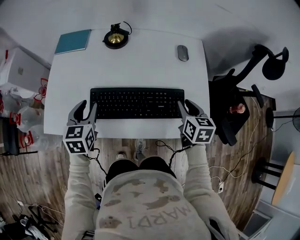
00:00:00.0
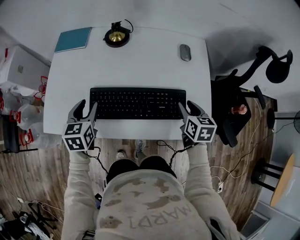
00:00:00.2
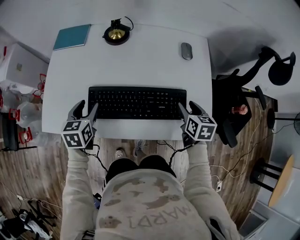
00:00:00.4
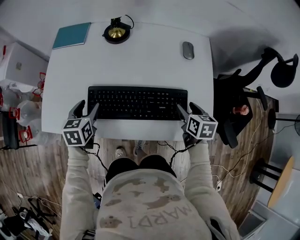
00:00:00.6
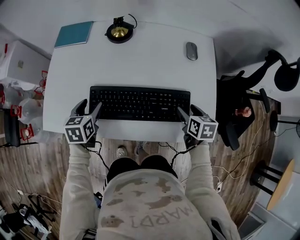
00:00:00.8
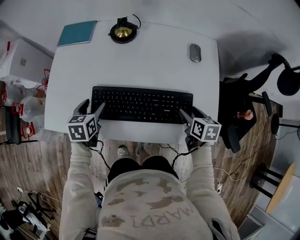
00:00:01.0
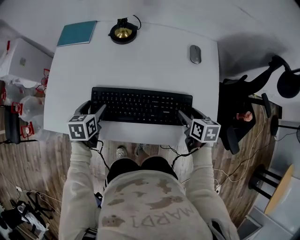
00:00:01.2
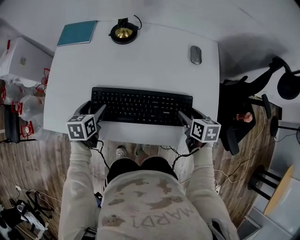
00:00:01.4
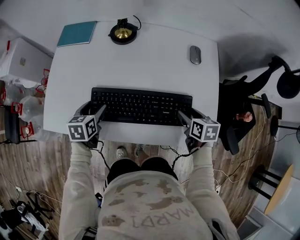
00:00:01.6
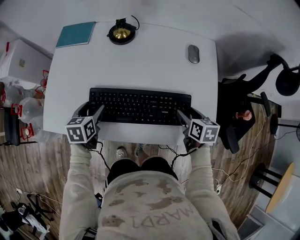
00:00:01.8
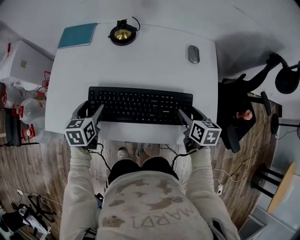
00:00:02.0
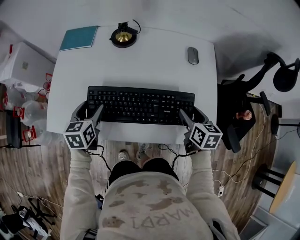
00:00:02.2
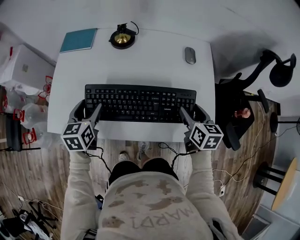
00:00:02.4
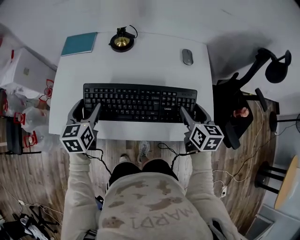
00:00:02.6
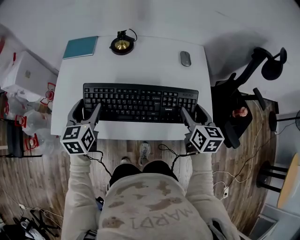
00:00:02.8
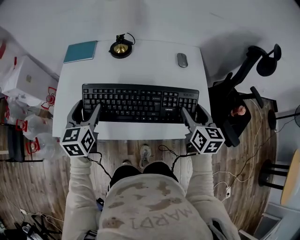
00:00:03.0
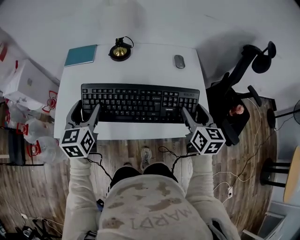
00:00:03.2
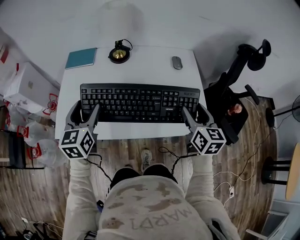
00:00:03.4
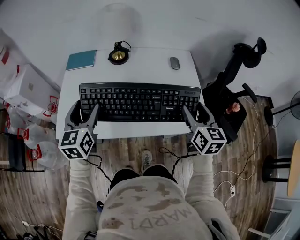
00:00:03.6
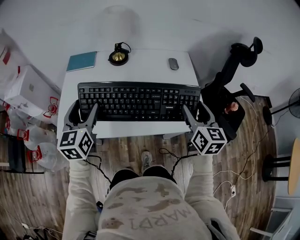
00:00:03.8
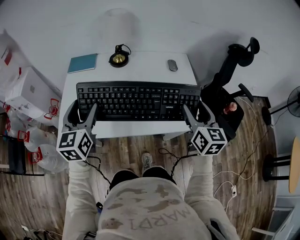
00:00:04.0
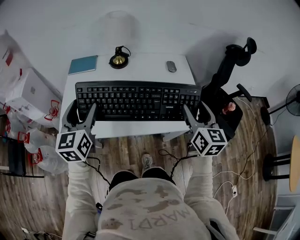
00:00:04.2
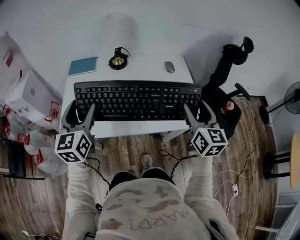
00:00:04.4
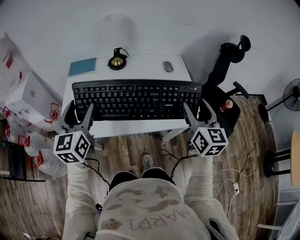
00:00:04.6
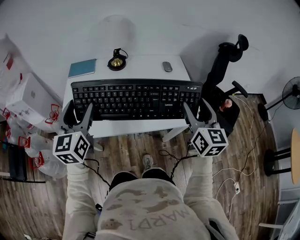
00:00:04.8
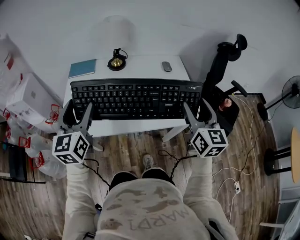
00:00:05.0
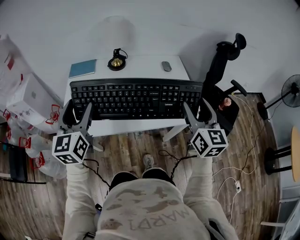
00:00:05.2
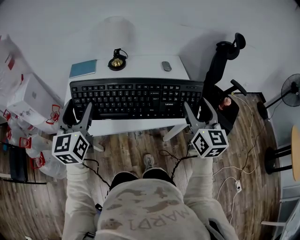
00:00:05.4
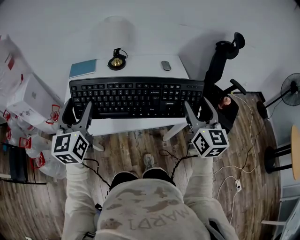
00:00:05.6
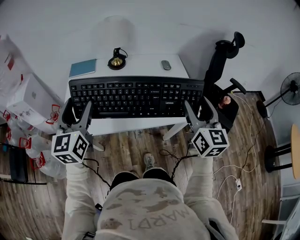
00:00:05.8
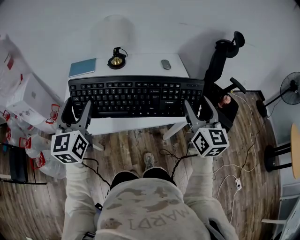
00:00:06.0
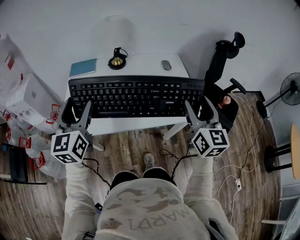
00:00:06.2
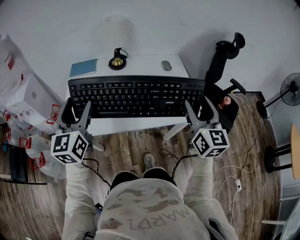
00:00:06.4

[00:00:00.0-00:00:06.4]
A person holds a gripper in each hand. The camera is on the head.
00:00:00.0 to 00:00:01.6: Both grippers travel together downward, roughly 10 cm. The left gripper changes its angle by some 20 degrees, and opens its fingers; the right gripper opens its fingers.
00:00:01.6 to 00:00:03.2: The two grippers go roughly 20 cm upward. The right gripper points its fingers approximately 30 degrees further upward. The left gripper turns by roughly 30 degrees.
00:00:03.2 to 00:00:04.8: The two grippers go approximately 15 cm upward and backward. The right gripper turns by some 20 degrees.
00:00:04.8 to 00:00:06.4: The grippers make only small movements.

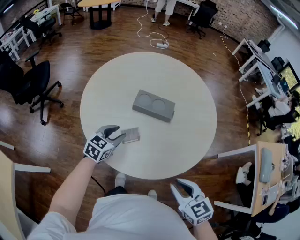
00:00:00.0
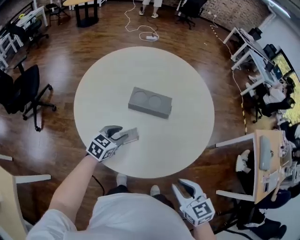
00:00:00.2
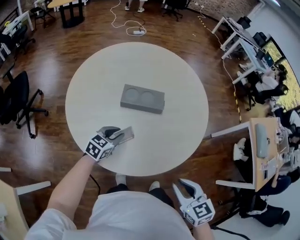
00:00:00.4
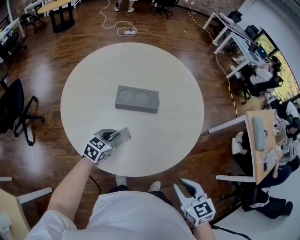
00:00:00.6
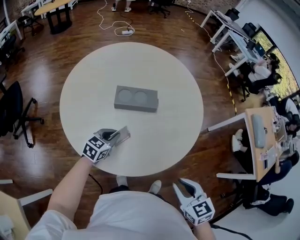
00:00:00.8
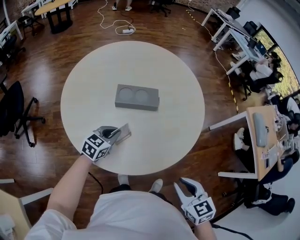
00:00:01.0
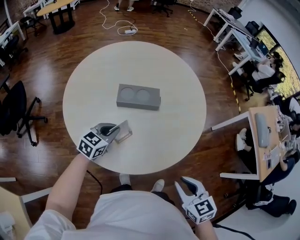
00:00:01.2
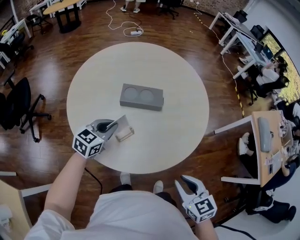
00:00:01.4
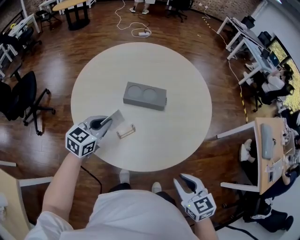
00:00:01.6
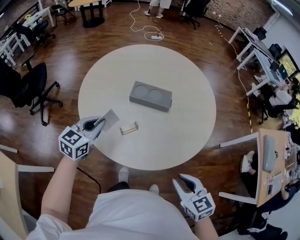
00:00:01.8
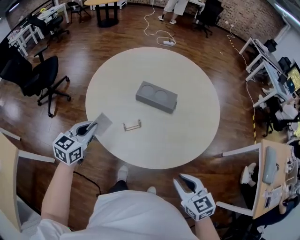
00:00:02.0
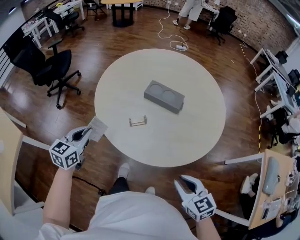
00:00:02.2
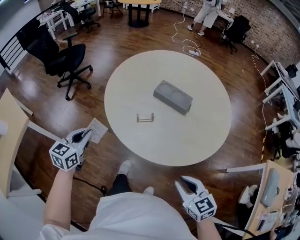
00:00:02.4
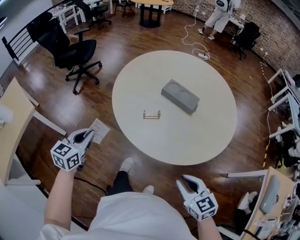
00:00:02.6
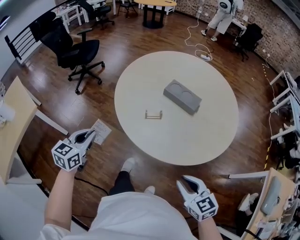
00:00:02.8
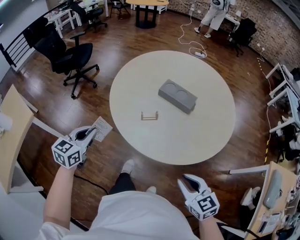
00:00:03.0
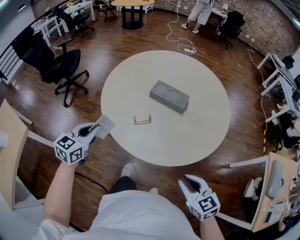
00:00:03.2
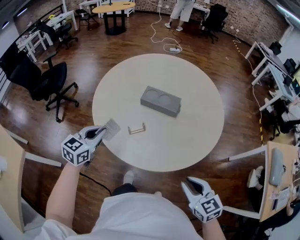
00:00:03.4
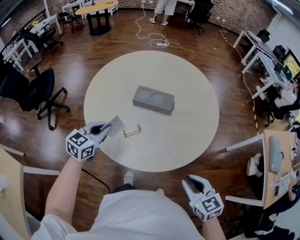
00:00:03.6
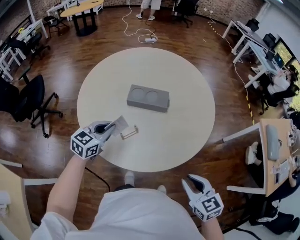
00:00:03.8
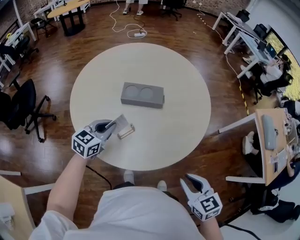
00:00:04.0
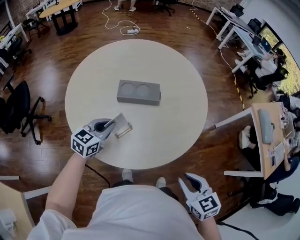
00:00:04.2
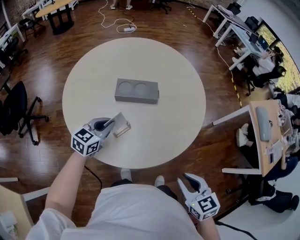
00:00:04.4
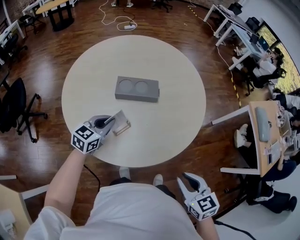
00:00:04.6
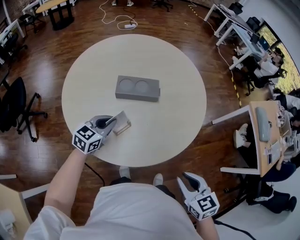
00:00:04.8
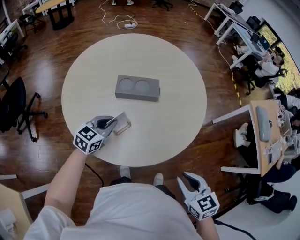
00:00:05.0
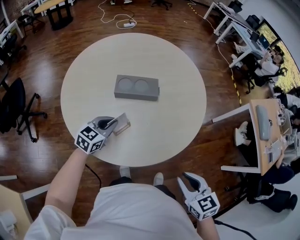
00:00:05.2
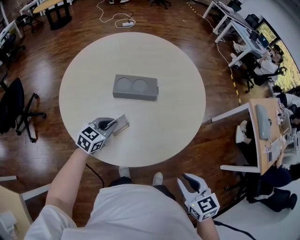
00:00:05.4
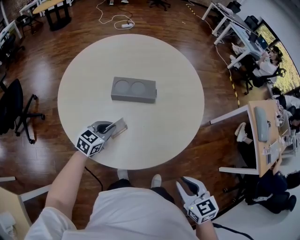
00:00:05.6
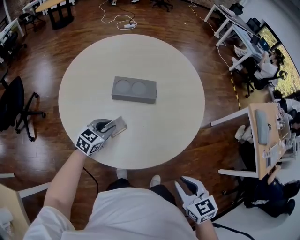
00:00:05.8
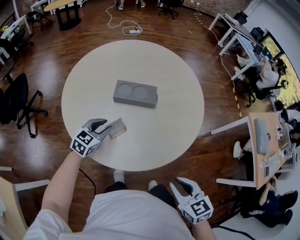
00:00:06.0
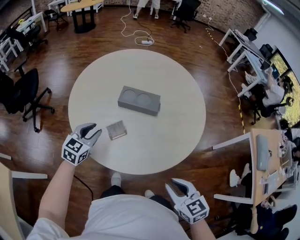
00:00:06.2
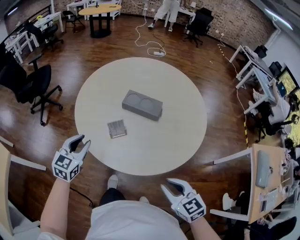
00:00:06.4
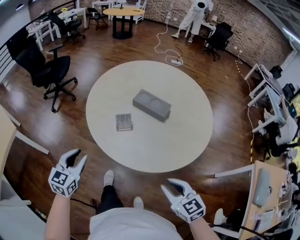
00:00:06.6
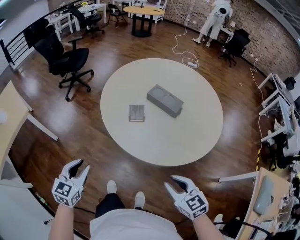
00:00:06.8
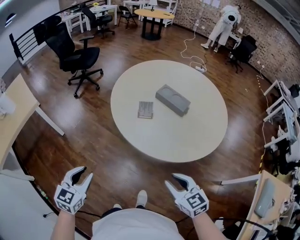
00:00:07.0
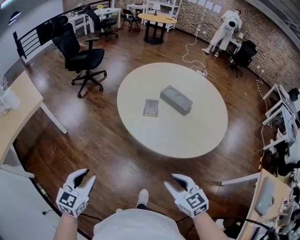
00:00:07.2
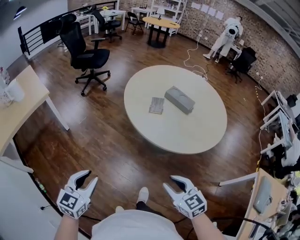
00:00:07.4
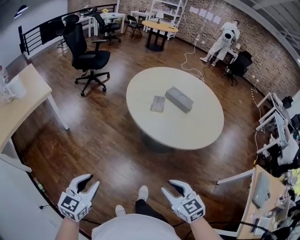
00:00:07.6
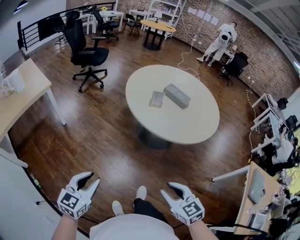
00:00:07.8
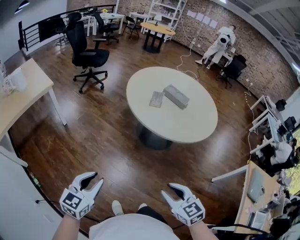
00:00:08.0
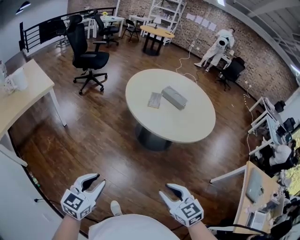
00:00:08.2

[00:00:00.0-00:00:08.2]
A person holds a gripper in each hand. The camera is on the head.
00:00:00.0 to 00:00:01.6: The left gripper travels upward by some 5 cm, and closes its fingers.
00:00:01.6 to 00:00:03.2: The right gripper moves about 5 cm, and rotates roughly 20 degrees, while the left gripper ends up about 20 cm from where it was, and swivels about 30 degrees.
00:00:03.2 to 00:00:05.0: The left gripper shifts by about 25 cm, and swivels roughly 40 degrees. The right gripper ends up roughly 5 cm from where it was, and changes its angle by about 30 degrees.
00:00:05.0 to 00:00:06.6: The right gripper changes place by some 10 cm, and turns by about 40 degrees; the left gripper moves roughly 25 cm, turns by roughly 50 degrees, and opens up.
00:00:06.6 to 00:00:08.2: The right gripper is displaced backward and to the left by roughly 35 cm; the left gripper travels backward by approximately 50 cm.

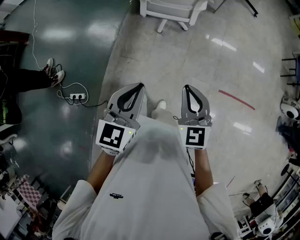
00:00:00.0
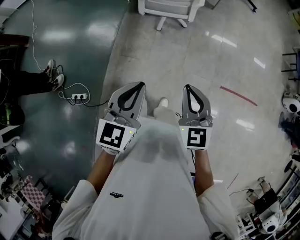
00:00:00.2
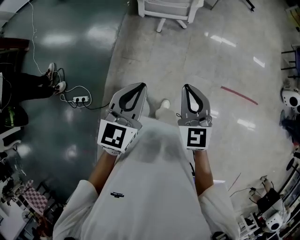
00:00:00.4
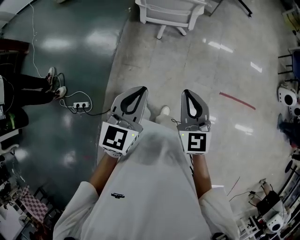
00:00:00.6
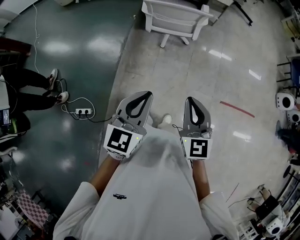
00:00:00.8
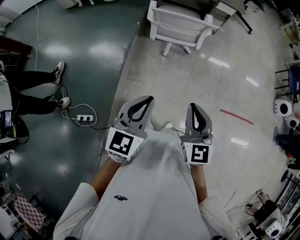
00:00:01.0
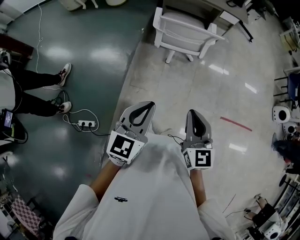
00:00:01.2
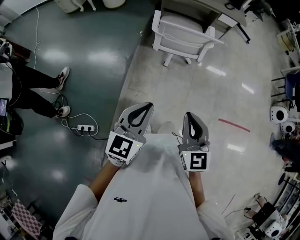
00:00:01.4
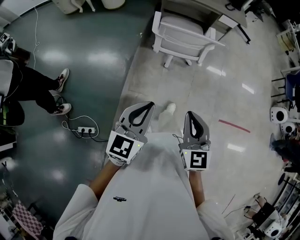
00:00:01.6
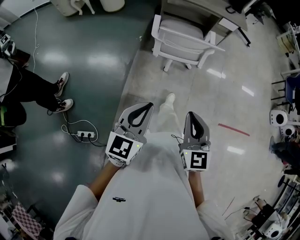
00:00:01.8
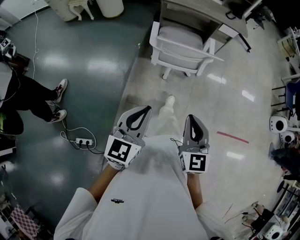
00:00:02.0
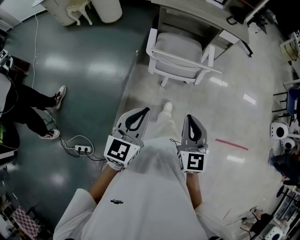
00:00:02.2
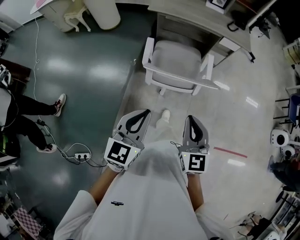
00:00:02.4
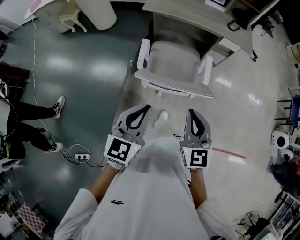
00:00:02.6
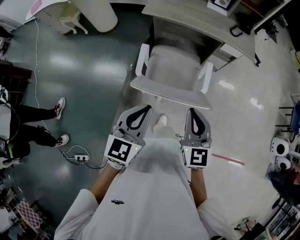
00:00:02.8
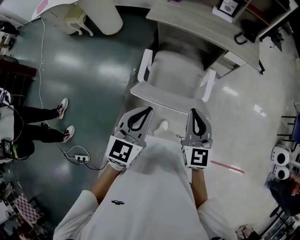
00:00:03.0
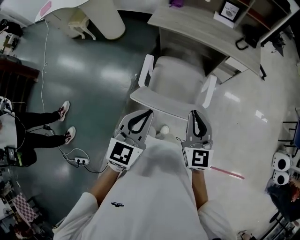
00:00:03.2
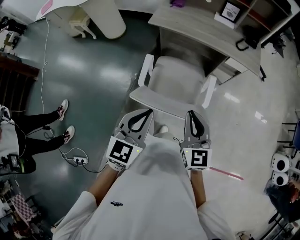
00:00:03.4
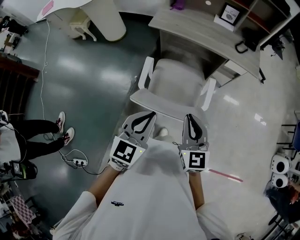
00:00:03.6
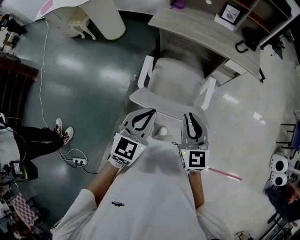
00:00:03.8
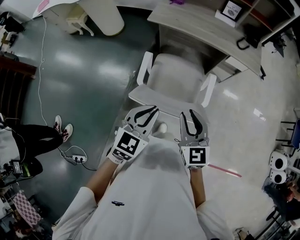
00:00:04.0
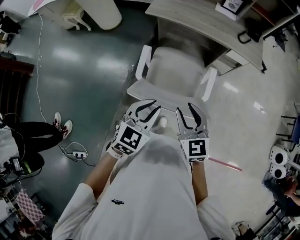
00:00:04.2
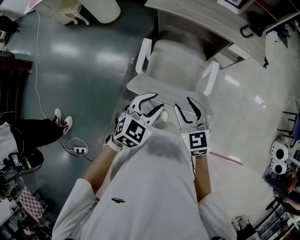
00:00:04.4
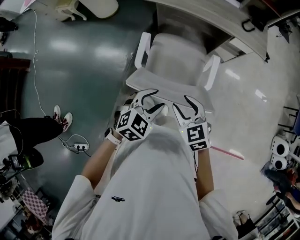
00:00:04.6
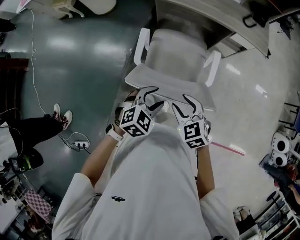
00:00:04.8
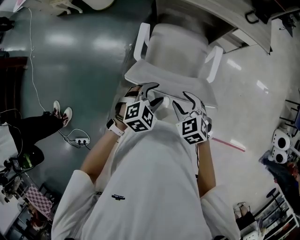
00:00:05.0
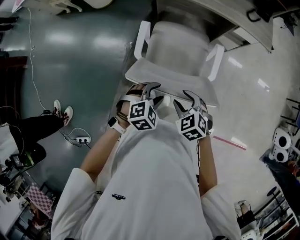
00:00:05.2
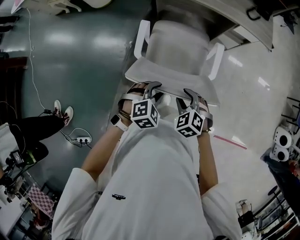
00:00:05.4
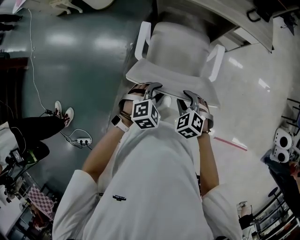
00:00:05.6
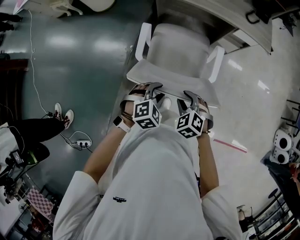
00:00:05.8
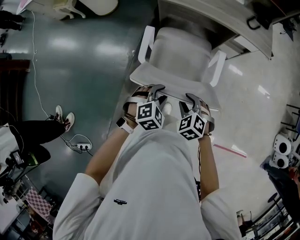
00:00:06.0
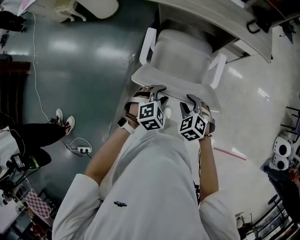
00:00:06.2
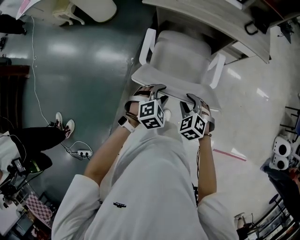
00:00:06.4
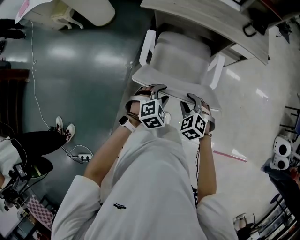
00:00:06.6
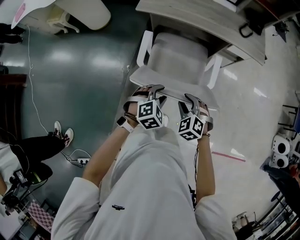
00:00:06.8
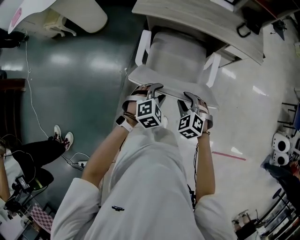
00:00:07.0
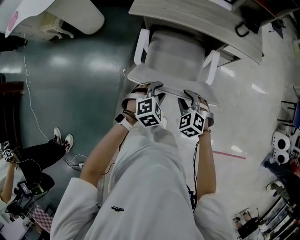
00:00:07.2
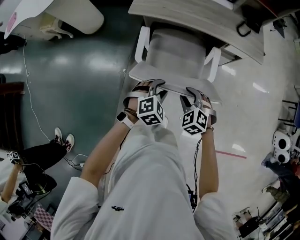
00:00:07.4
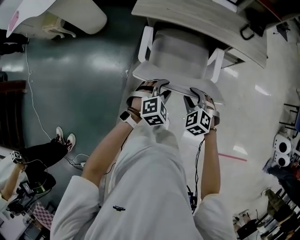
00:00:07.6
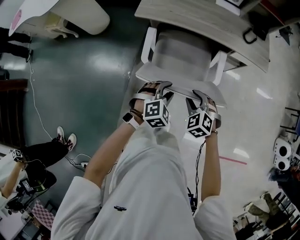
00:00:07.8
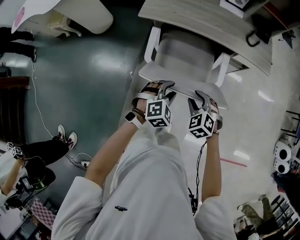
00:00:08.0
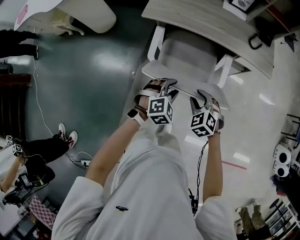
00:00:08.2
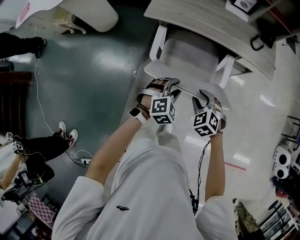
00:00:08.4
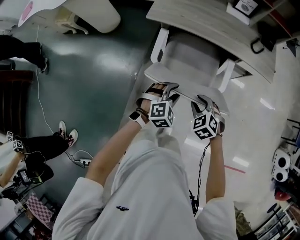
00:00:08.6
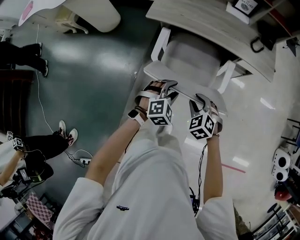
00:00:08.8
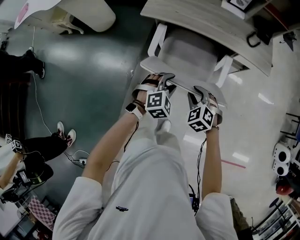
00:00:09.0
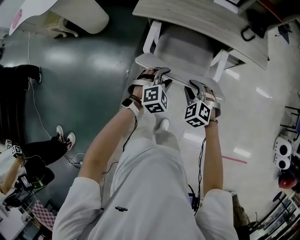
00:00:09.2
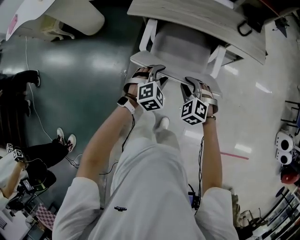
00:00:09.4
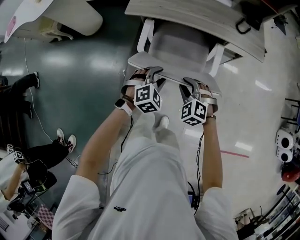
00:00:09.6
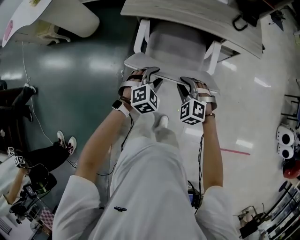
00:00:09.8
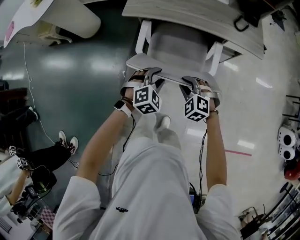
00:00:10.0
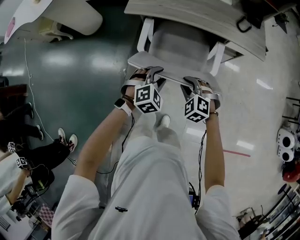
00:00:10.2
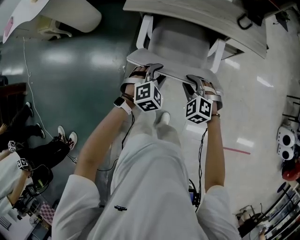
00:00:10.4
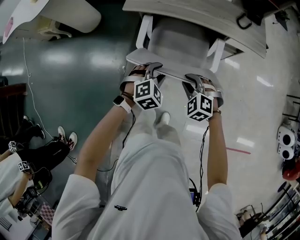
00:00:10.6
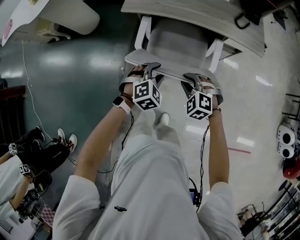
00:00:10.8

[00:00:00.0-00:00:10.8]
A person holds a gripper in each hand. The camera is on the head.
00:00:00.0 to 00:00:01.6: The left gripper is displaced to the left and forward by about 20 cm; the right gripper moves to the left, some 15 cm.
00:00:01.6 to 00:00:03.0: The pair of grippers is taken forward, approximately 50 cm.
00:00:03.0 to 00:00:04.6: The left gripper is displaced downward by approximately 15 cm, rotates approximately 40 degrees, and opens up, while the right gripper is displaced downward and to the left by roughly 15 cm, changes its angle by some 30 degrees, and opens up.
00:00:04.6 to 00:00:06.2: The left gripper heads downward and forward, covering about 10 cm; the right gripper is displaced downward by approximately 10 cm, and swivels roughly 30 degrees.
00:00:06.2 to 00:00:07.8: Both grippers move forward, approximately 15 cm.
00:00:07.8 to 00:00:10.8: The grippers move only a little.
